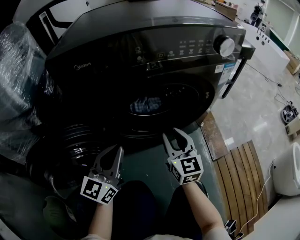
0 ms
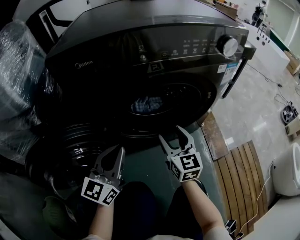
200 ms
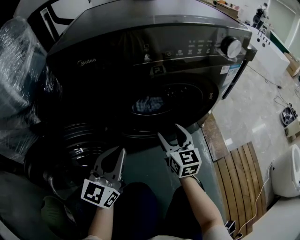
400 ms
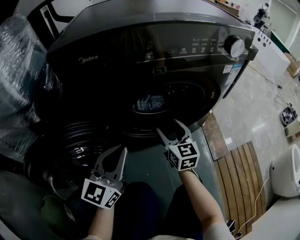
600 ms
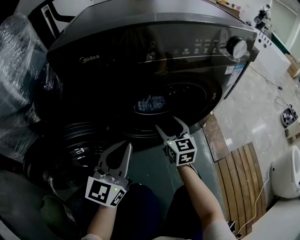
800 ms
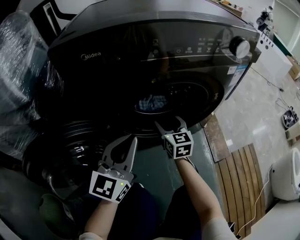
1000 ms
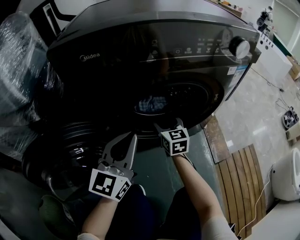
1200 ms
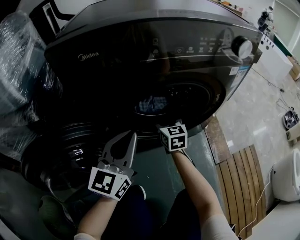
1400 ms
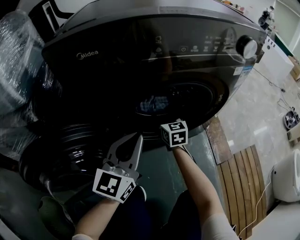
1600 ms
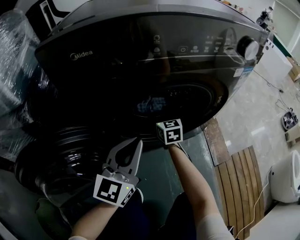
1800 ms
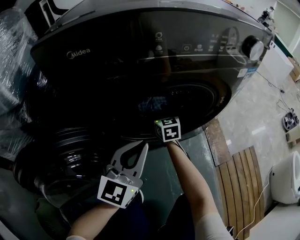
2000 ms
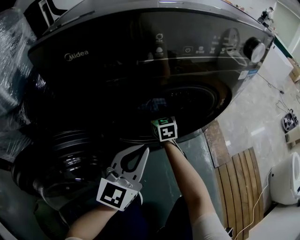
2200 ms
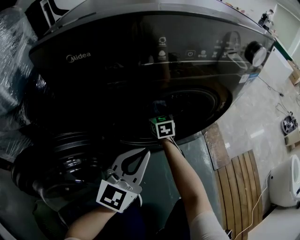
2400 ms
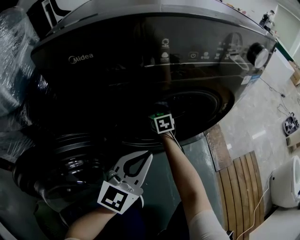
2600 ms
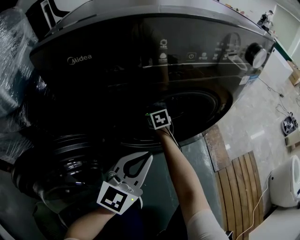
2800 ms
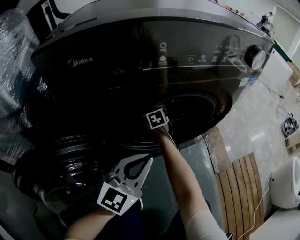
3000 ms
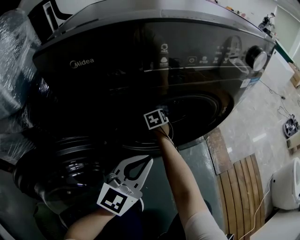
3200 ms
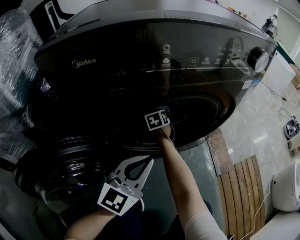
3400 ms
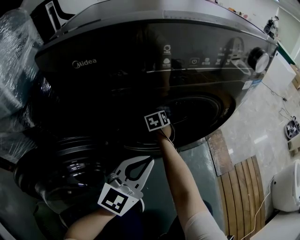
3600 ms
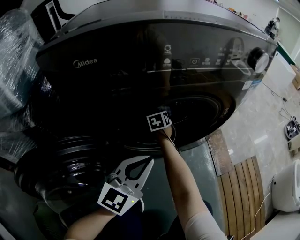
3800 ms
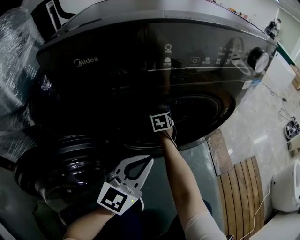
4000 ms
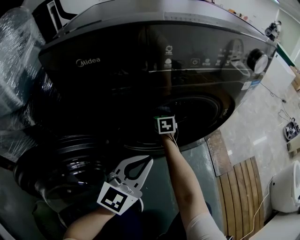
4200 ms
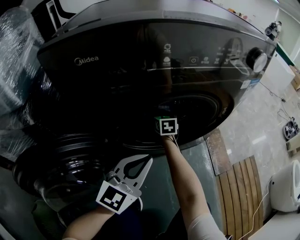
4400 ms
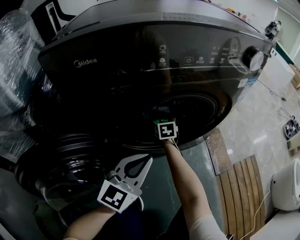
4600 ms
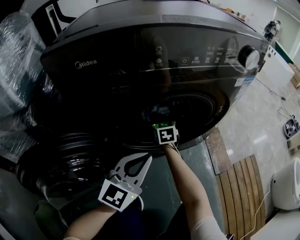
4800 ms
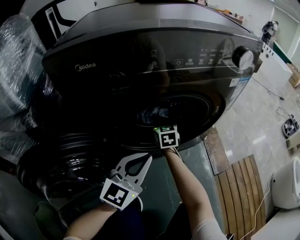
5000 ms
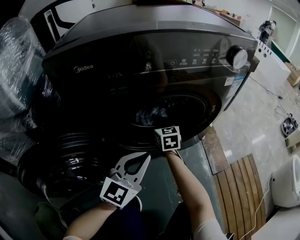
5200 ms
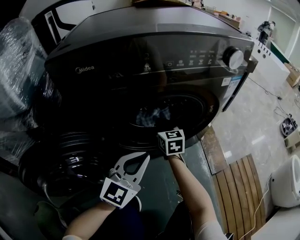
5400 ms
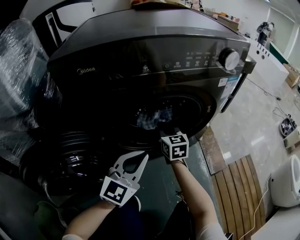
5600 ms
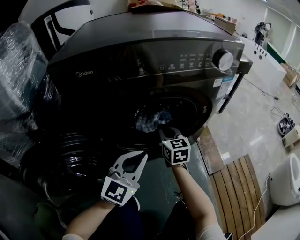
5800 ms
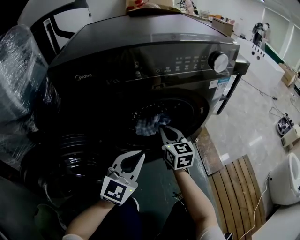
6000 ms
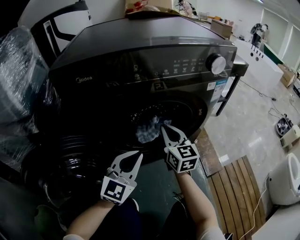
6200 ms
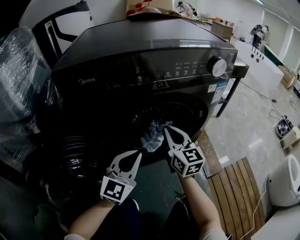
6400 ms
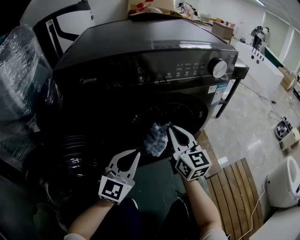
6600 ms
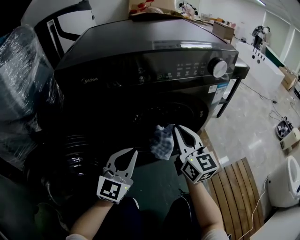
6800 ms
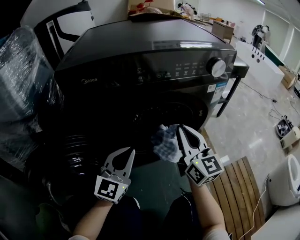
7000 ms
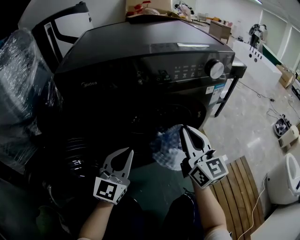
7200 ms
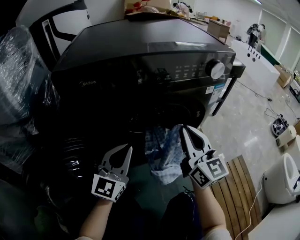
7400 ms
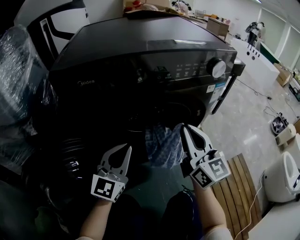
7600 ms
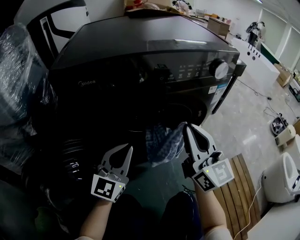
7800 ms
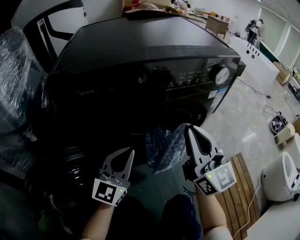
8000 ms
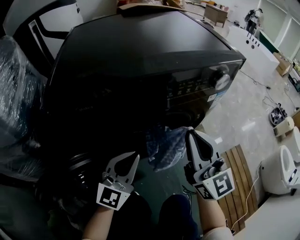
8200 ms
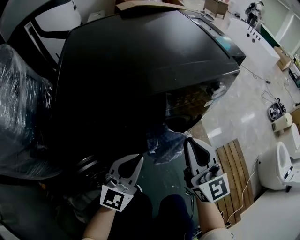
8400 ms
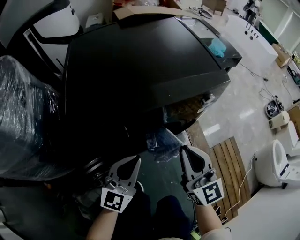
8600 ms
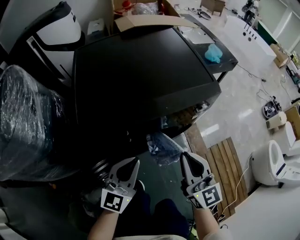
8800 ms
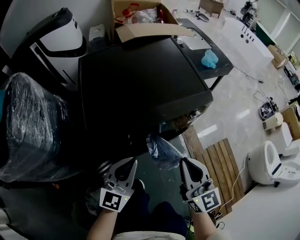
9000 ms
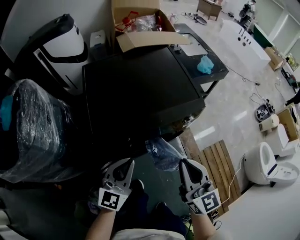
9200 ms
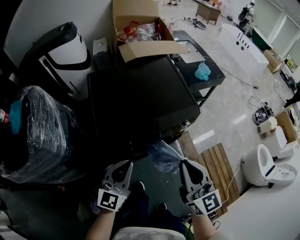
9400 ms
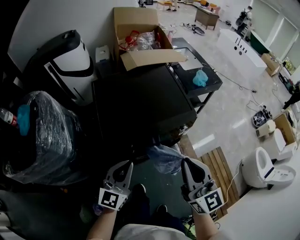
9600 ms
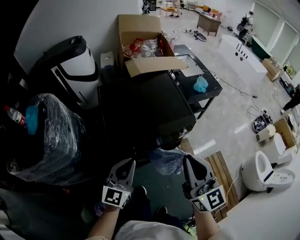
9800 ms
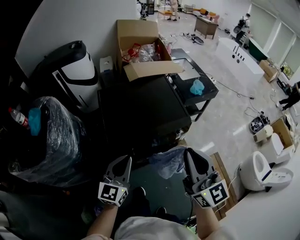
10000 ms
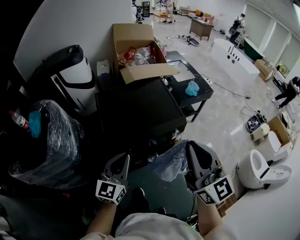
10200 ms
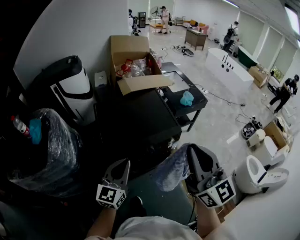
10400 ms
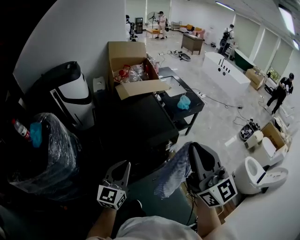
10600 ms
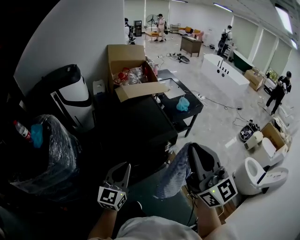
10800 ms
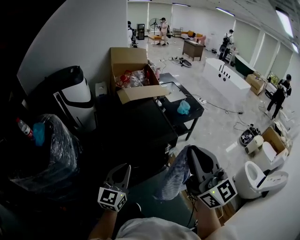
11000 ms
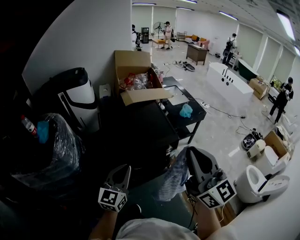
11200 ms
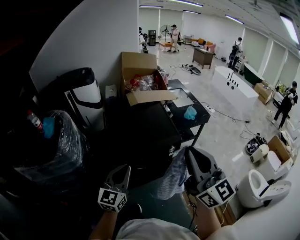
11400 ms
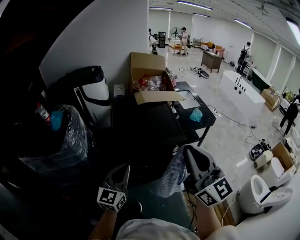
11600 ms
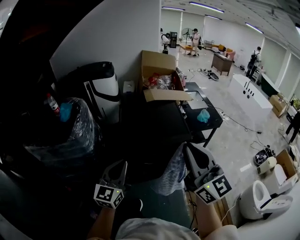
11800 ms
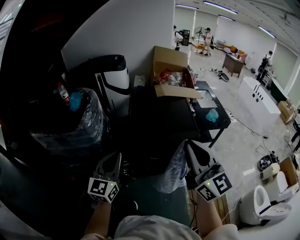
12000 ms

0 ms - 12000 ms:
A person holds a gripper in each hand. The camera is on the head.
0 ms - 1600 ms: The right gripper travels forward, downward and to the left by about 20 cm, and opens up; the left gripper shifts by about 5 cm.
1600 ms - 3000 ms: The right gripper travels forward, downward and to the left by about 15 cm, and turns by roughly 20 degrees, while the left gripper ends up about 5 cm from where it was.
3000 ms - 4400 ms: The right gripper moves some 5 cm, and closes its fingers.
4400 ms - 6000 ms: The right gripper is displaced backward, upward and to the right by about 20 cm.
6000 ms - 7600 ms: The right gripper heads upward and backward, covering approximately 20 cm, and changes its angle by approximately 20 degrees; the left gripper ends up some 5 cm from where it was.
7600 ms - 9000 ms: Both grippers travel together upward, about 25 cm.
9000 ms - 10400 ms: The two grippers go approximately 35 cm upward.
10400 ms - 12000 ms: The left gripper goes approximately 20 cm backward, to the left and upward, and changes its angle by approximately 20 degrees. The right gripper shifts some 10 cm backward and to the left.

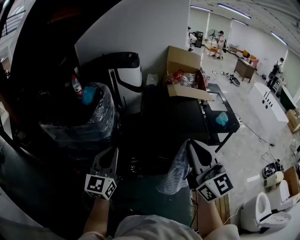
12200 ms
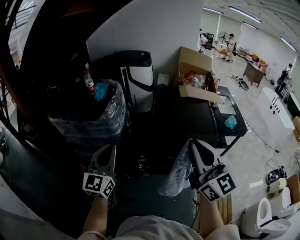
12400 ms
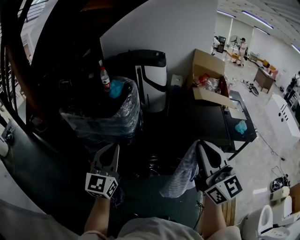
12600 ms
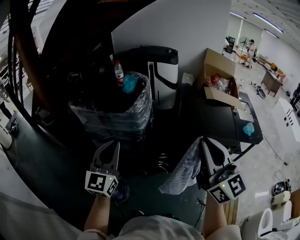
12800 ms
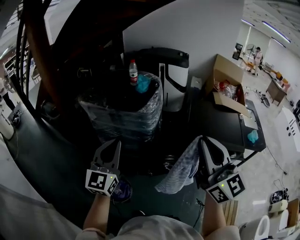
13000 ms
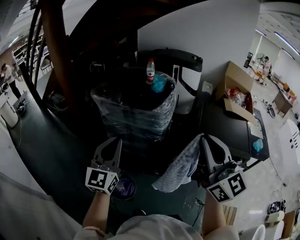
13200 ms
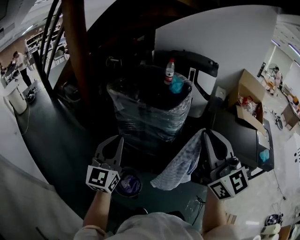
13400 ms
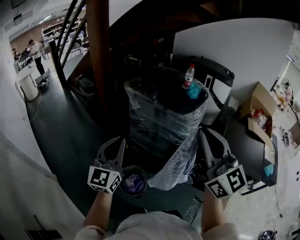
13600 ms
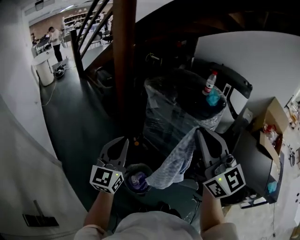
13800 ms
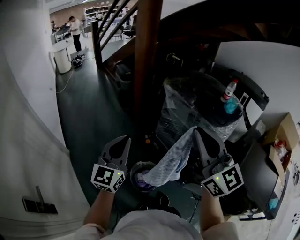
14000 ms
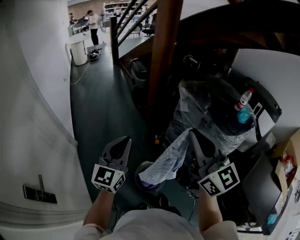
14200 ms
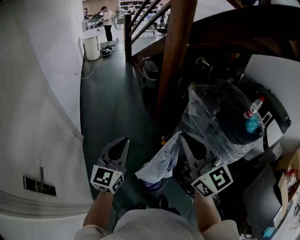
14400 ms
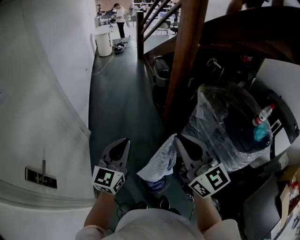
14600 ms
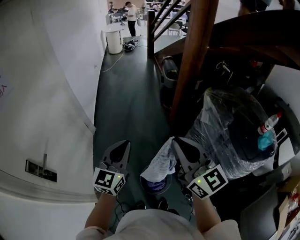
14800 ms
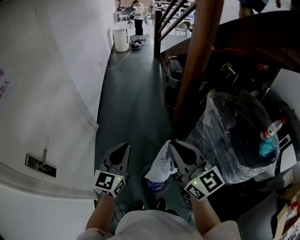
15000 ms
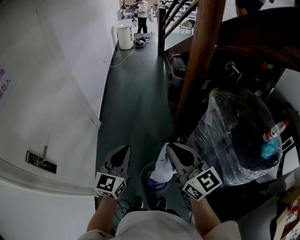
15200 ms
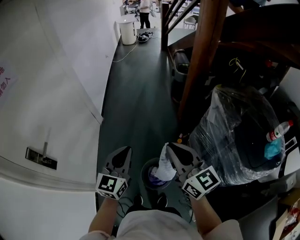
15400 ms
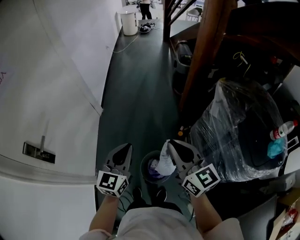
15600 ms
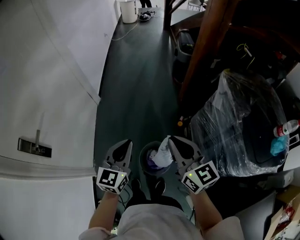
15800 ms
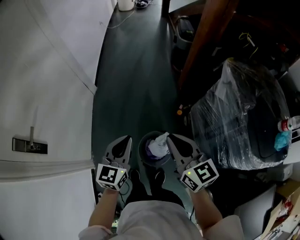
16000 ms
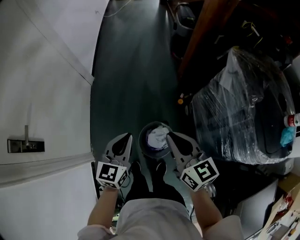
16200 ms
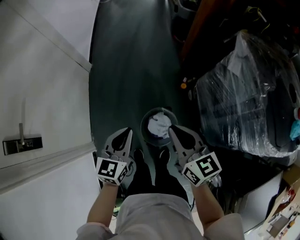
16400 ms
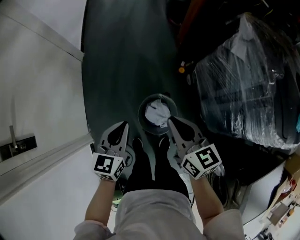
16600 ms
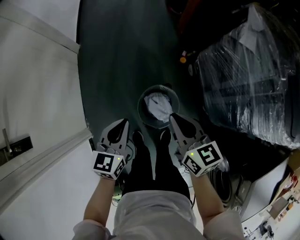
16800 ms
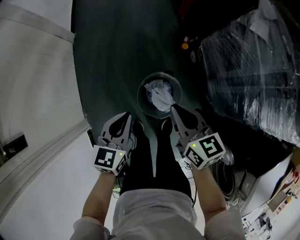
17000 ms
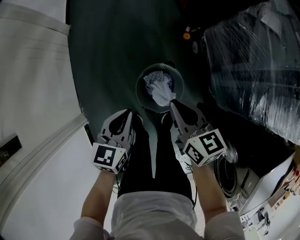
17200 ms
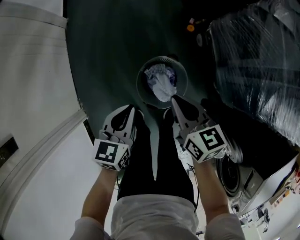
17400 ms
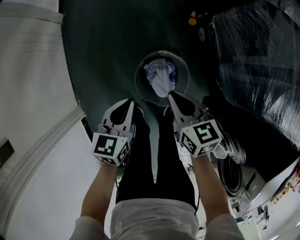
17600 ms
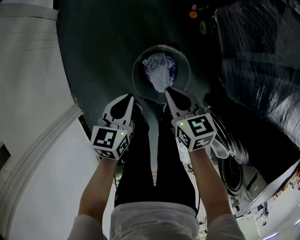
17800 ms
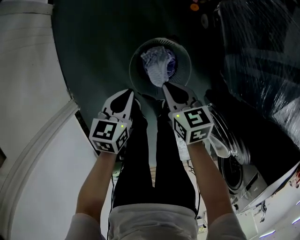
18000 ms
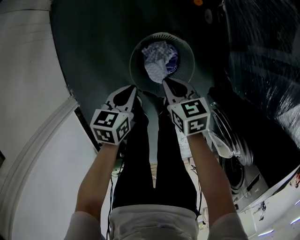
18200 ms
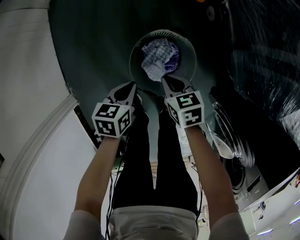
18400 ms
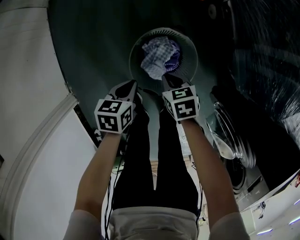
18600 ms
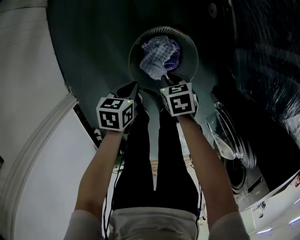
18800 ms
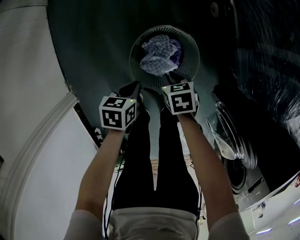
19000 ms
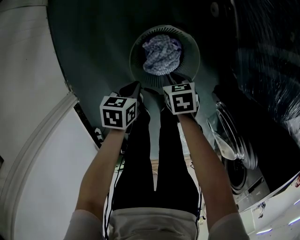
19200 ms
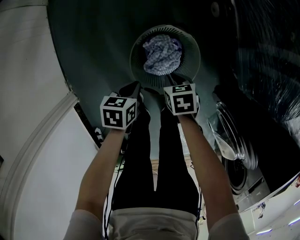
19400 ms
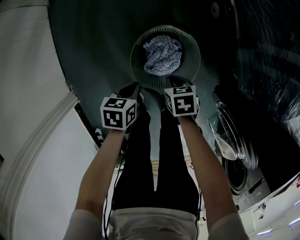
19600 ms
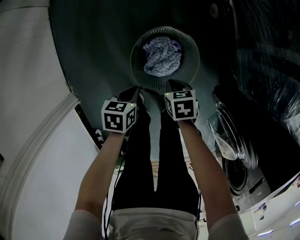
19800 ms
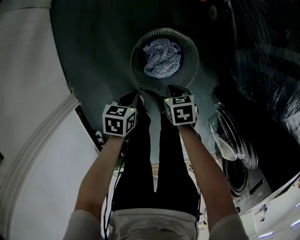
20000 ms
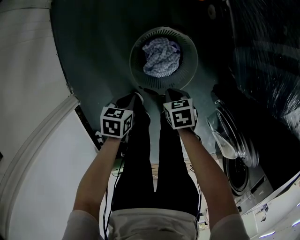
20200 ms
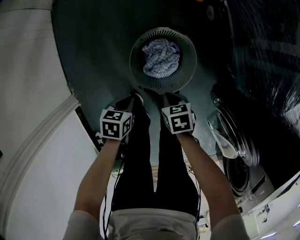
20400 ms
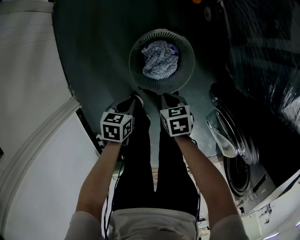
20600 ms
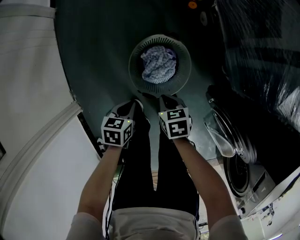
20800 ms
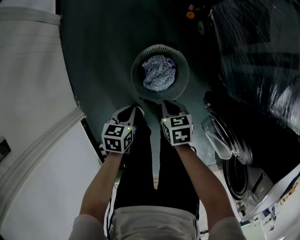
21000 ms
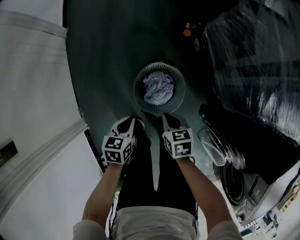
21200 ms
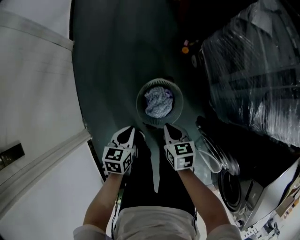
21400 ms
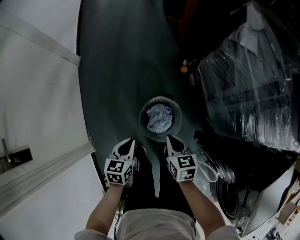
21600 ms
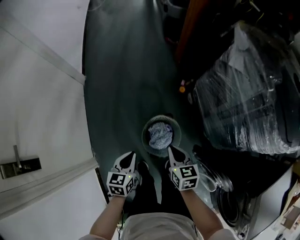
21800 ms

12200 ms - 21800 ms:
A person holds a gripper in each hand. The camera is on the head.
12200 ms - 13800 ms: The two grippers travel together, approximately 50 cm. The right gripper swivels about 40 degrees. Meanwhile the left gripper changes its angle by roughly 40 degrees.
13800 ms - 15400 ms: The left gripper goes approximately 10 cm downward, and changes its angle by roughly 40 degrees. Meanwhile the right gripper changes place by some 25 cm, and turns by about 50 degrees.
15400 ms - 17000 ms: Both grippers move downward, roughly 35 cm. The left gripper rotates some 30 degrees. Meanwhile the right gripper swivels roughly 40 degrees.
17000 ms - 18600 ms: Both grippers travel together downward, some 35 cm. The left gripper rotates some 30 degrees. The right gripper points its fingers about 40 degrees further downward.
18600 ms - 20200 ms: Both grippers move backward, approximately 10 cm.
20200 ms - 21800 ms: Both grippers move upward, roughly 35 cm. The left gripper swivels about 30 degrees, while the right gripper angles its fingers upward, by some 30 degrees.

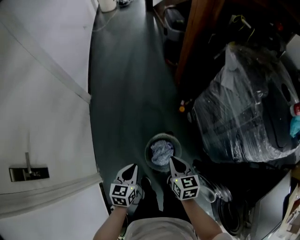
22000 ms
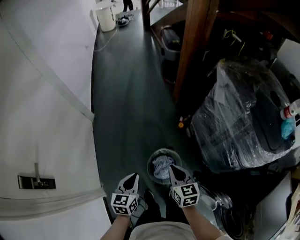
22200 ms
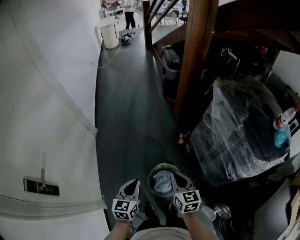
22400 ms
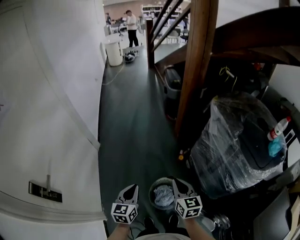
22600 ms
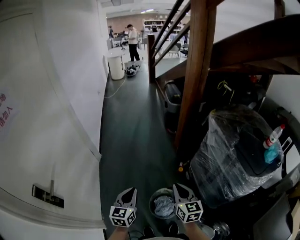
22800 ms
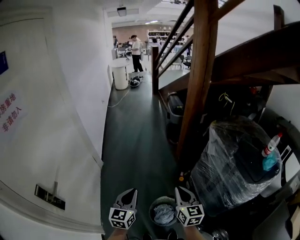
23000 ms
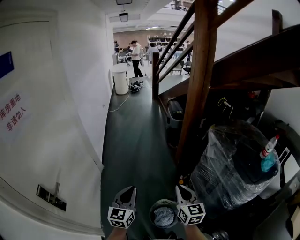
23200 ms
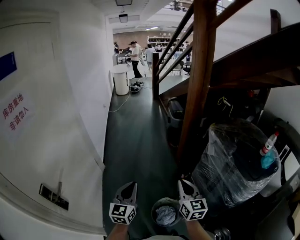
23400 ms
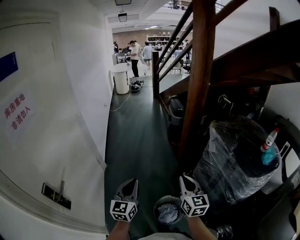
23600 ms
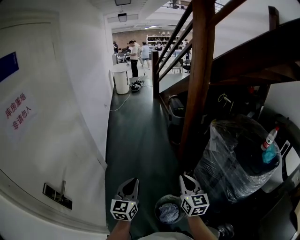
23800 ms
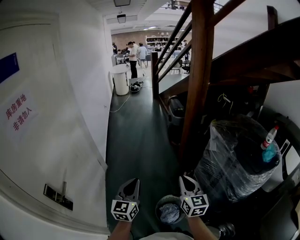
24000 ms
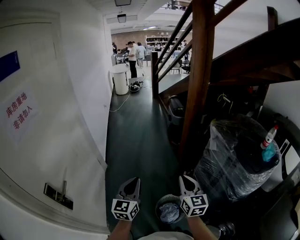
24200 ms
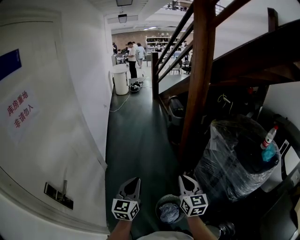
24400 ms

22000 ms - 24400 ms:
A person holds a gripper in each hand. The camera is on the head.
22000 ms - 23200 ms: The two grippers go some 30 cm upward. The left gripper angles its fingers upward, by some 30 degrees, while the right gripper rotates about 30 degrees.
23200 ms - 24400 ms: There are only small adjustments of the grippers.
